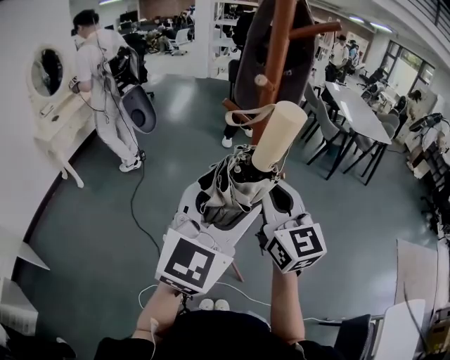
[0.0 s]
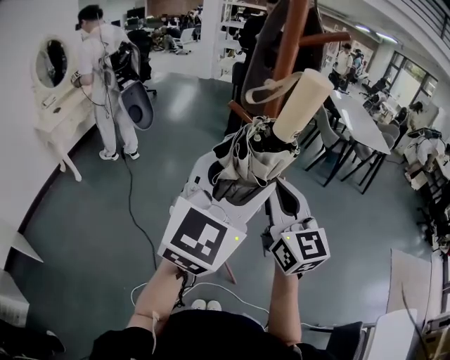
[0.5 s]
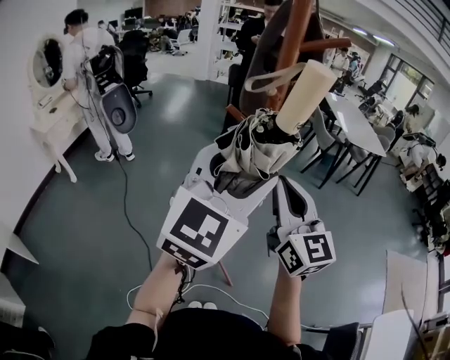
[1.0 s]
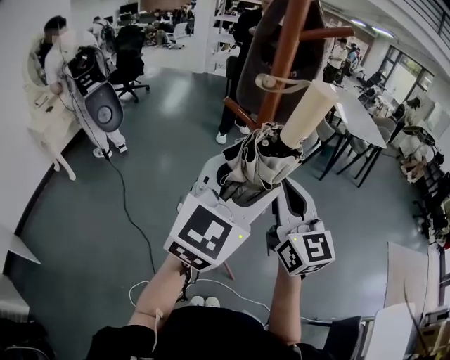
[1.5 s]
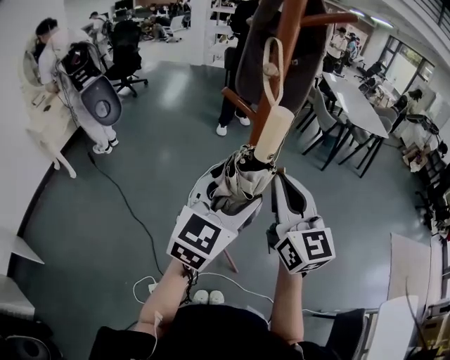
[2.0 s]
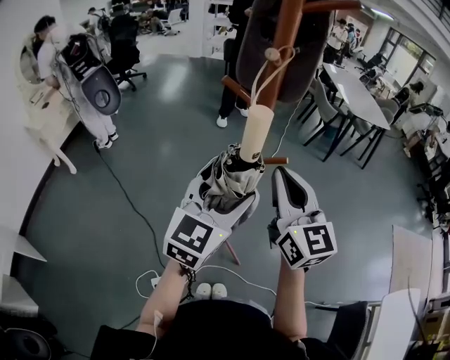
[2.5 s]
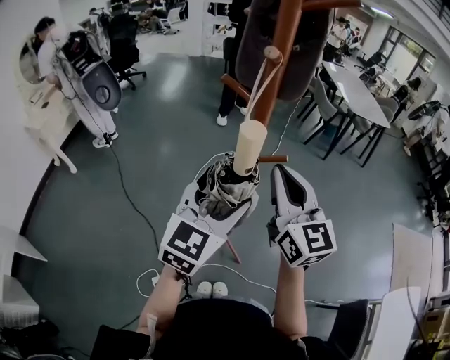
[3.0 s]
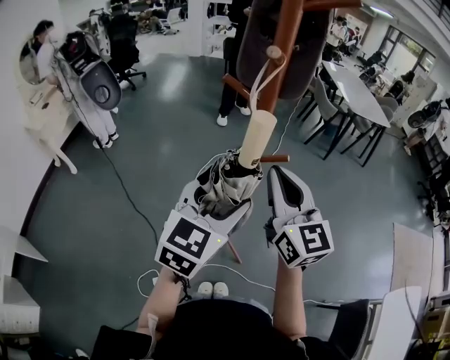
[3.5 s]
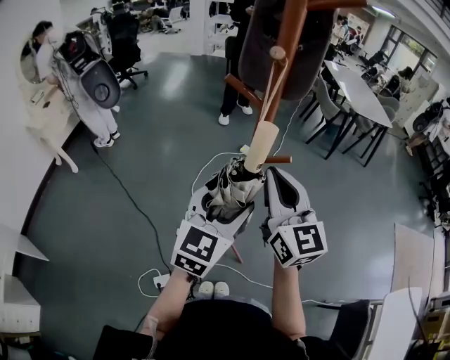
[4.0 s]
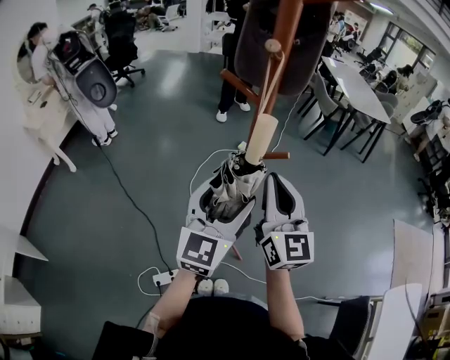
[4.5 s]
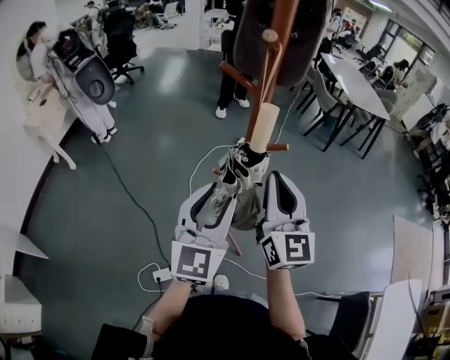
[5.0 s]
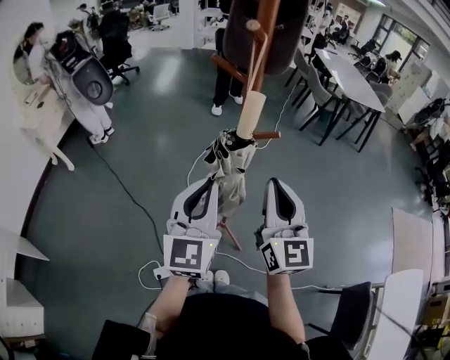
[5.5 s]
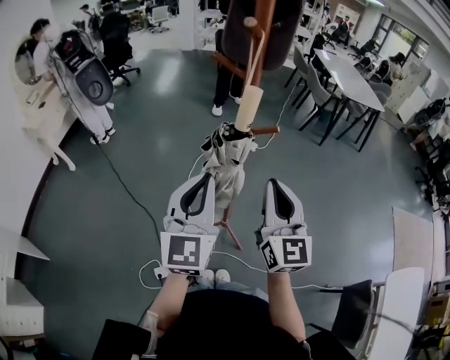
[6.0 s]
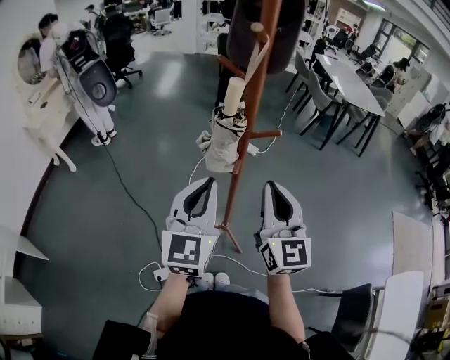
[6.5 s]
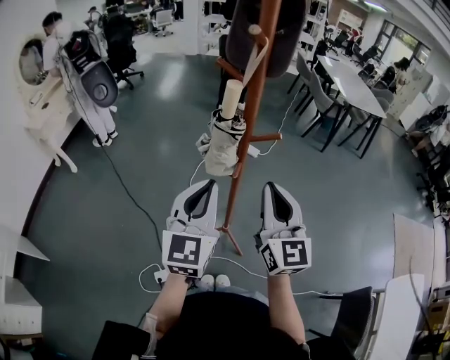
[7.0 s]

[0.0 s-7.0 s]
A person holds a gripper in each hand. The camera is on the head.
0.0 to 2.0 s: The left gripper heads downward and forward, covering approximately 10 cm.
2.0 to 3.5 s: The left gripper moves roughly 5 cm.
3.5 to 5.0 s: The left gripper swivels approximately 20 degrees, and closes its fingers.
5.0 to 7.0 s: The left gripper closes its fingers, while the right gripper is displaced backward by roughly 5 cm.

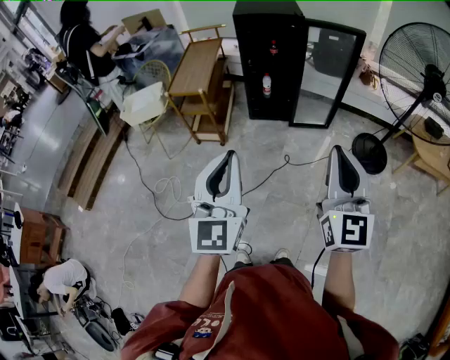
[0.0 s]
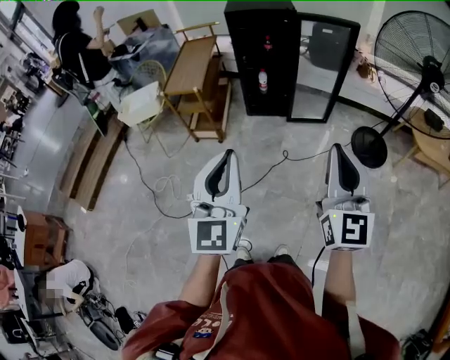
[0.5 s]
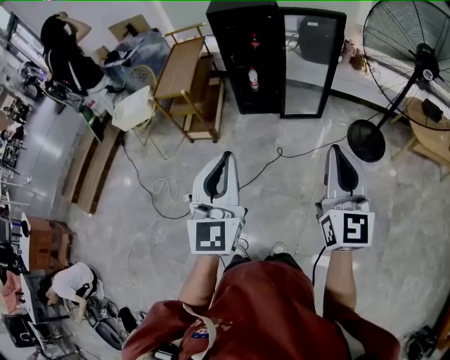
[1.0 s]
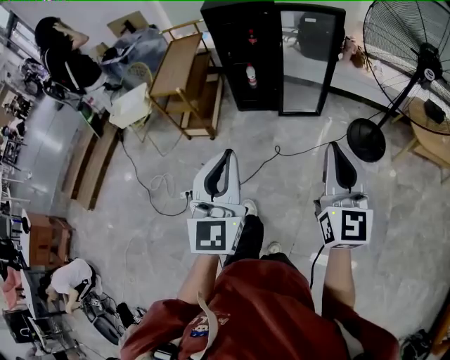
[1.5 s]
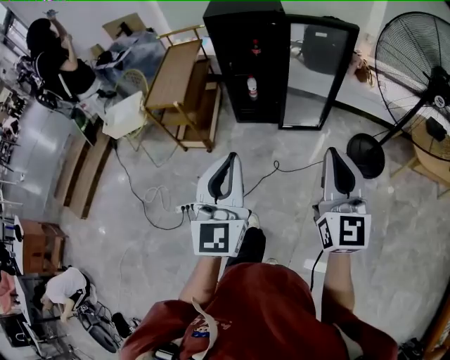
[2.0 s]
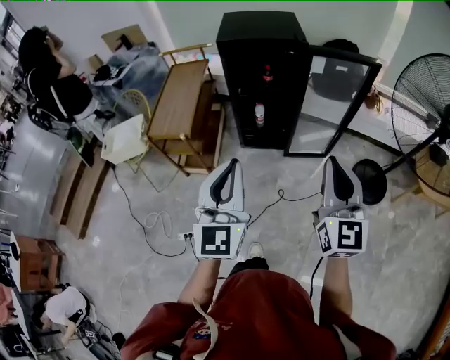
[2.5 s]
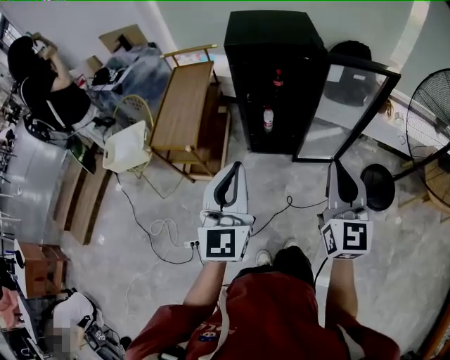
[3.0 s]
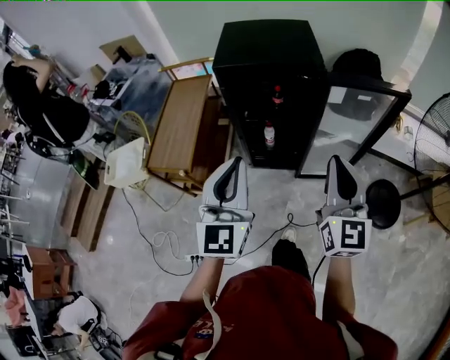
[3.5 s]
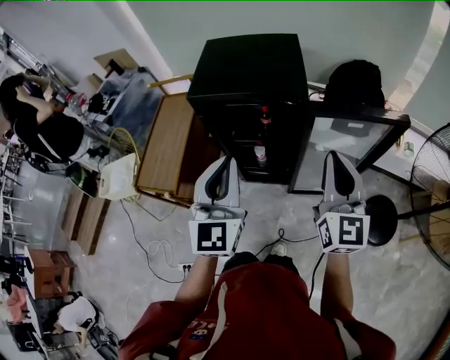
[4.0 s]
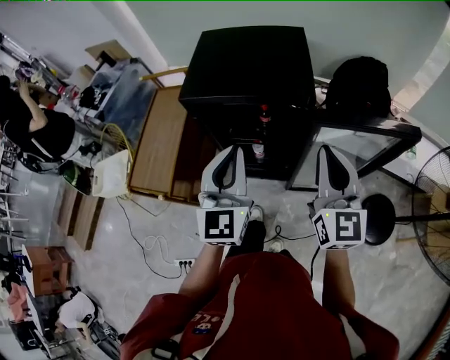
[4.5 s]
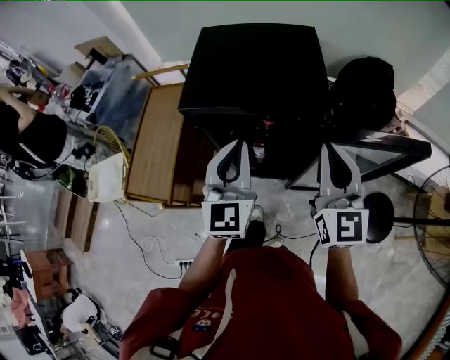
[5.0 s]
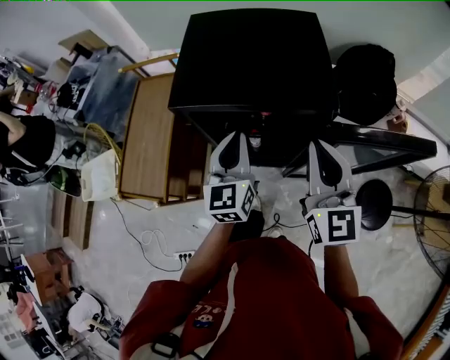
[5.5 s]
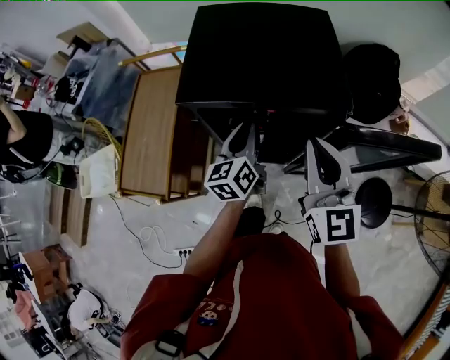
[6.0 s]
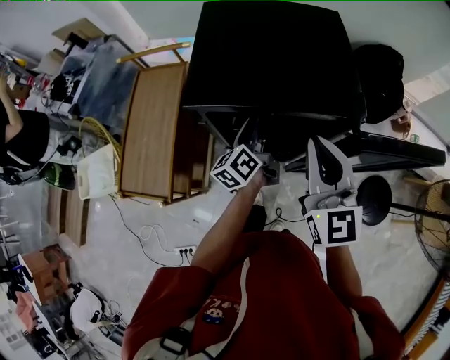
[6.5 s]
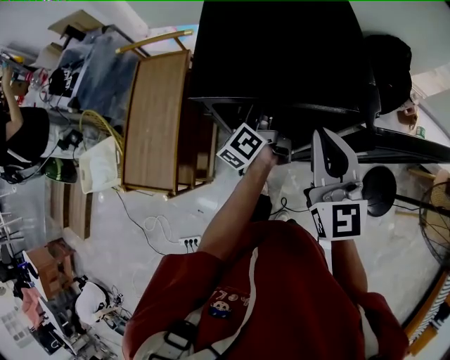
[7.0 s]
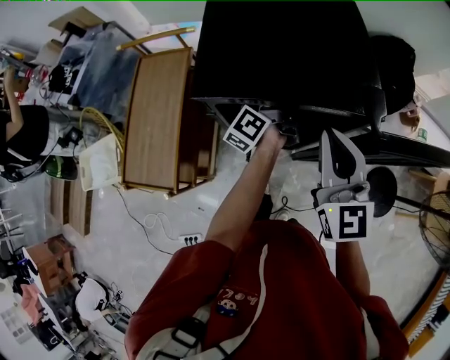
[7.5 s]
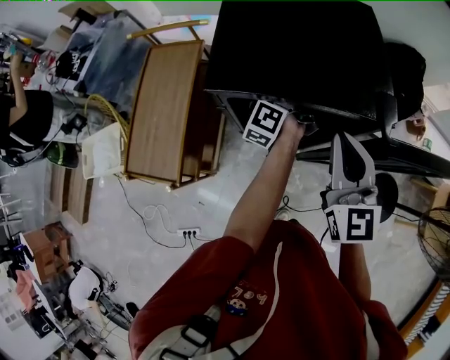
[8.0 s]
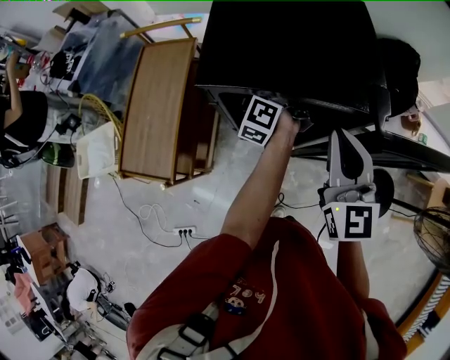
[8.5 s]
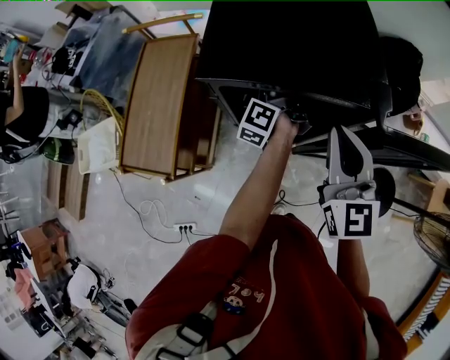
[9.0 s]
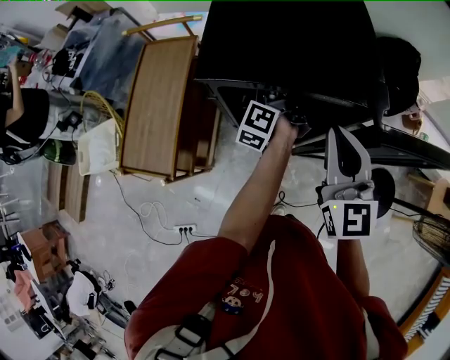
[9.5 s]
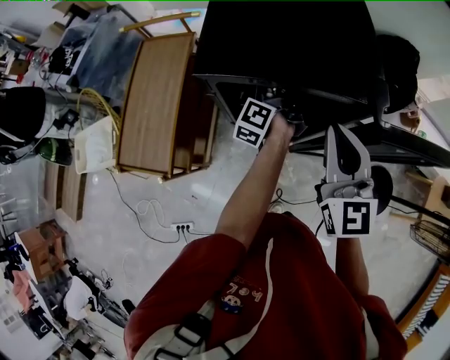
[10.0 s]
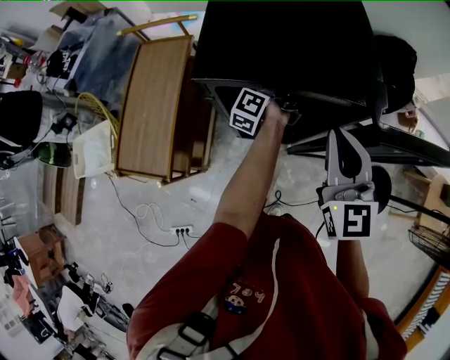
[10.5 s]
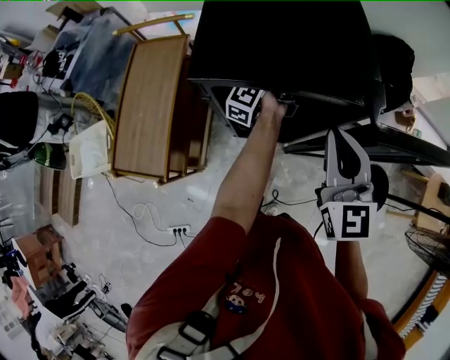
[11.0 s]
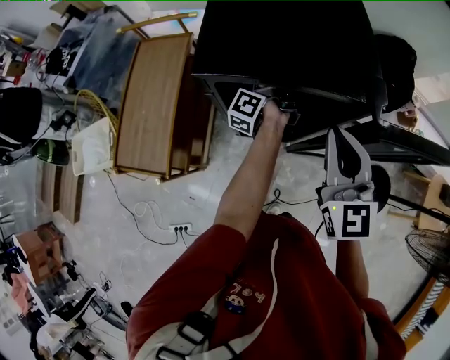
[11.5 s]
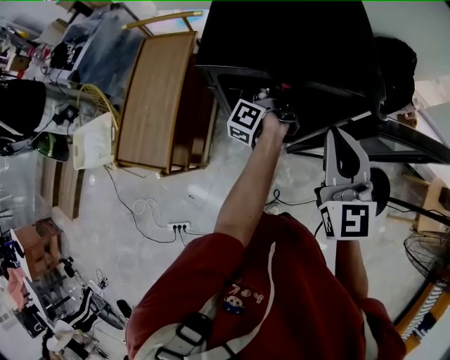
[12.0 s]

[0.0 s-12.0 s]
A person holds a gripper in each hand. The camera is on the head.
0.0 to 2.0 s: Both grippers travel together forward and to the right, about 15 cm.
2.0 to 4.0 s: The two grippers travel together, forward, about 50 cm.
4.0 to 6.0 s: The right gripper heads forward, to the left and downward, covering approximately 20 cm. The left gripper moves forward and downward, approximately 30 cm, and rolls counterclockwise, seen from behind, by approximately 40 degrees.
6.0 to 8.0 s: The left gripper moves forward, roughly 15 cm, and twists some 40 degrees counterclockwise, seen from behind.
8.0 to 10.0 s: The left gripper ends up approximately 5 cm from where it was, and opens.
10.0 to 12.0 s: The left gripper closes up.

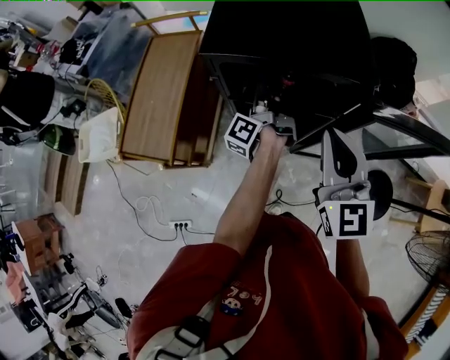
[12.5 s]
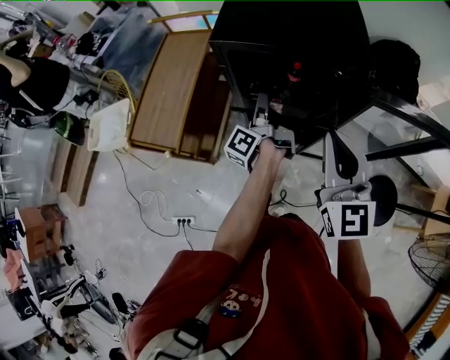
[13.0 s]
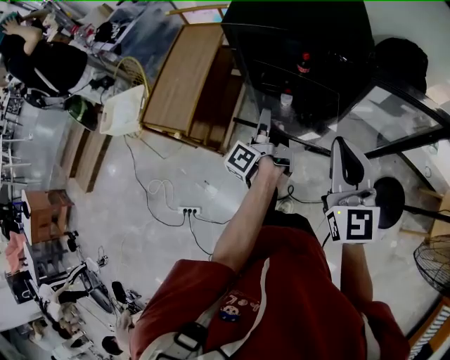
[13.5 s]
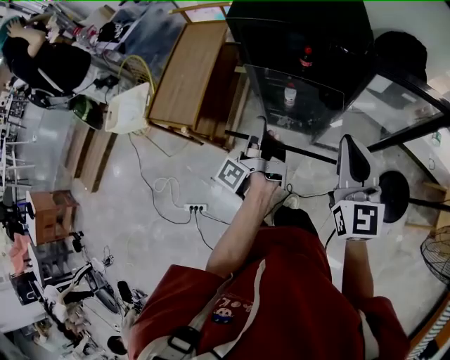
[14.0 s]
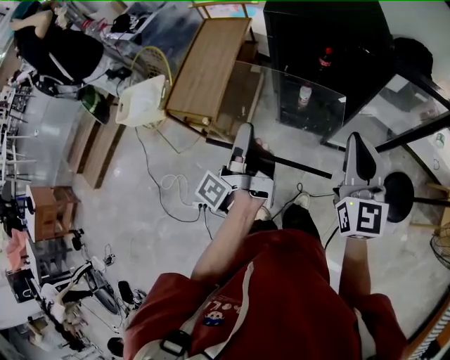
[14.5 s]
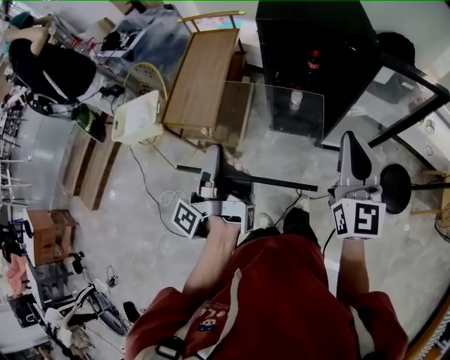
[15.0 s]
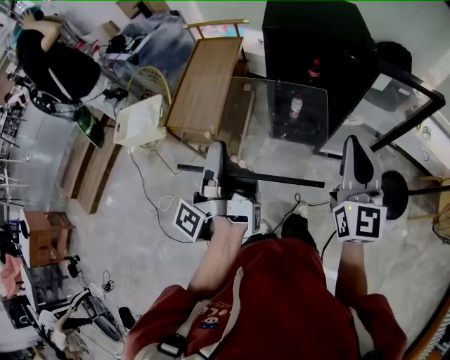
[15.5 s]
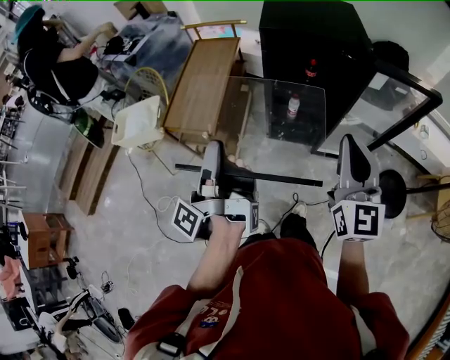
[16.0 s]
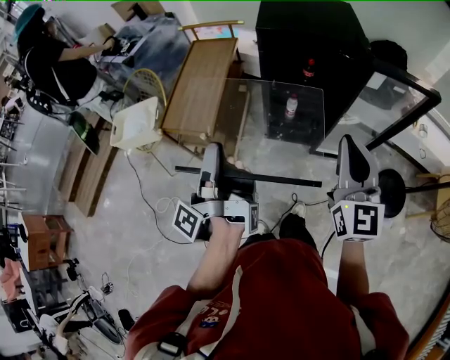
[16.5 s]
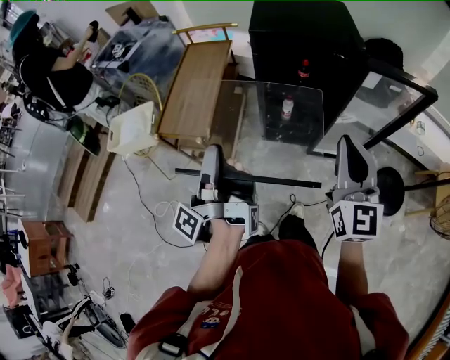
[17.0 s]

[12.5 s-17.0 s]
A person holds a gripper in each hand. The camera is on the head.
12.5 to 14.5 s: The right gripper goes about 20 cm backward. Meanwhile the left gripper is displaced backward, to the left and upward by roughly 40 cm.
14.5 to 17.0 s: The right gripper moves some 5 cm, while the left gripper shifts approximately 10 cm to the left and upward.

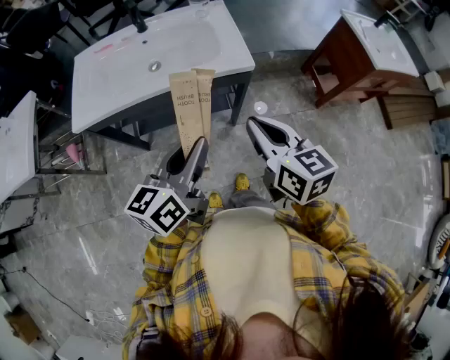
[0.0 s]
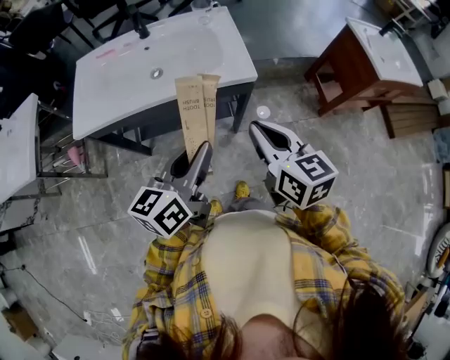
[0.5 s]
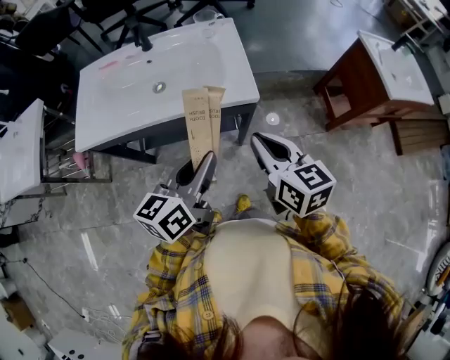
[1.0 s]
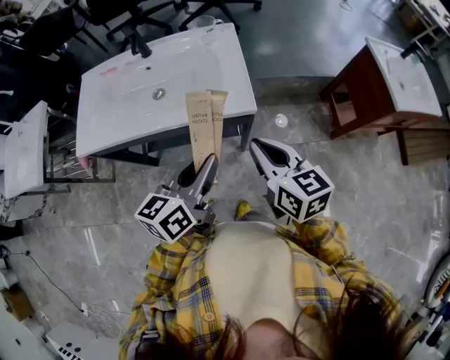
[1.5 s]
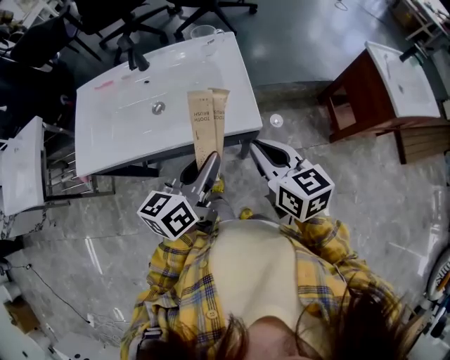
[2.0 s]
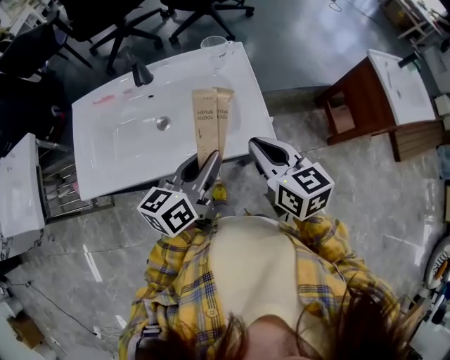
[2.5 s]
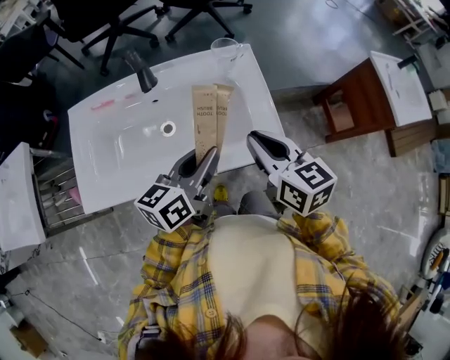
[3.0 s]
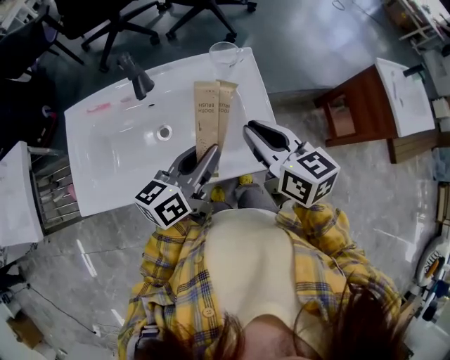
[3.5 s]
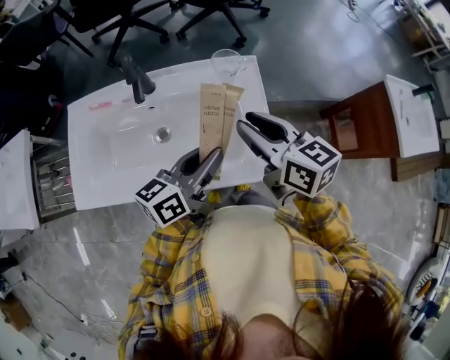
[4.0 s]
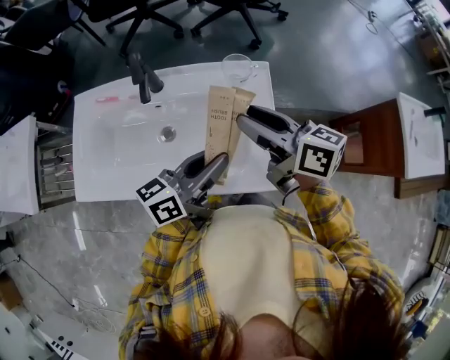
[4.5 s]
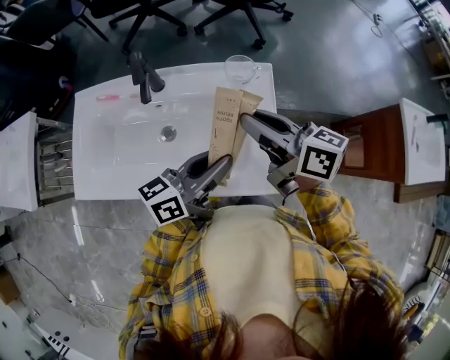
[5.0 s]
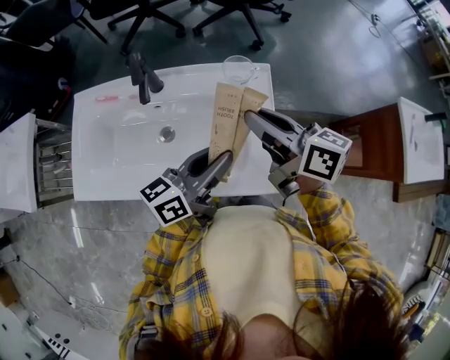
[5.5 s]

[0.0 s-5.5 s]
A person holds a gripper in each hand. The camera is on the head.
0.0 to 2.0 s: Both grippers travel together forward, roughly 15 cm.
2.0 to 3.5 s: Both grippers travel together forward and to the left, approximately 15 cm.
3.5 to 5.5 s: The right gripper is displaced forward by some 10 cm, and rotates approximately 30 degrees. Meanwhile the left gripper moves roughly 5 cm.
